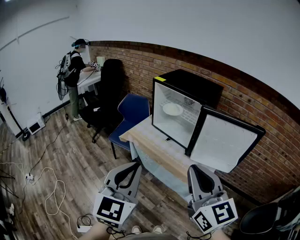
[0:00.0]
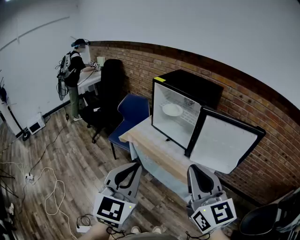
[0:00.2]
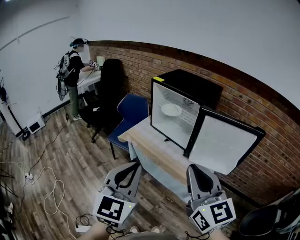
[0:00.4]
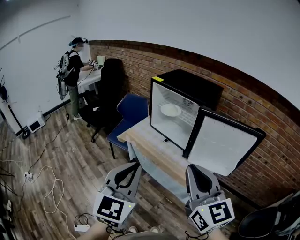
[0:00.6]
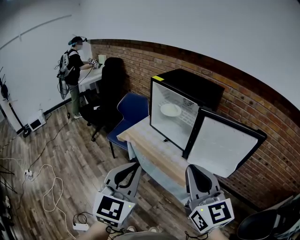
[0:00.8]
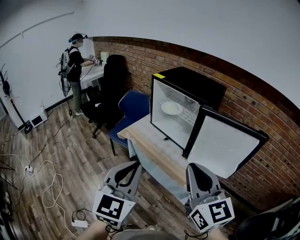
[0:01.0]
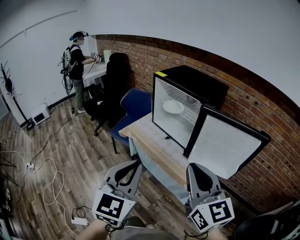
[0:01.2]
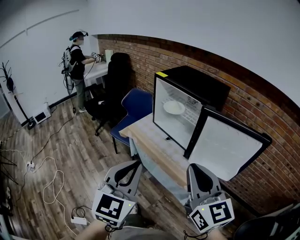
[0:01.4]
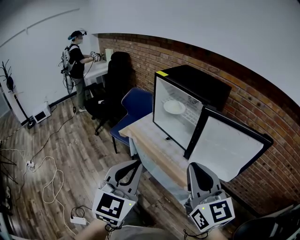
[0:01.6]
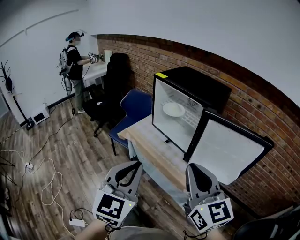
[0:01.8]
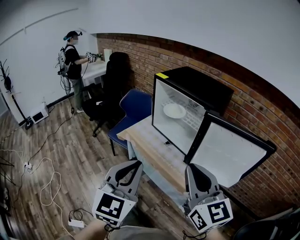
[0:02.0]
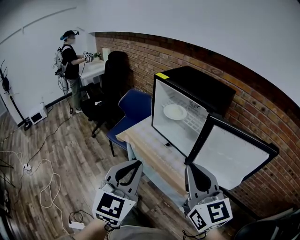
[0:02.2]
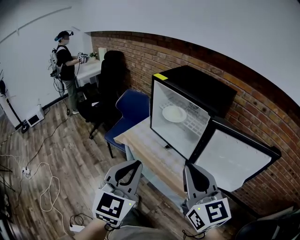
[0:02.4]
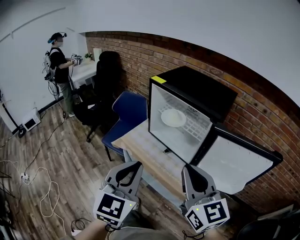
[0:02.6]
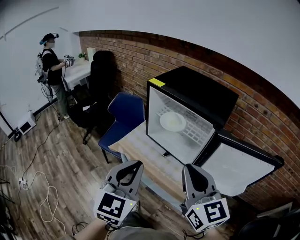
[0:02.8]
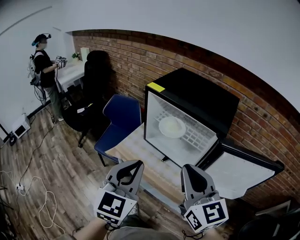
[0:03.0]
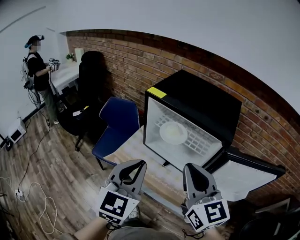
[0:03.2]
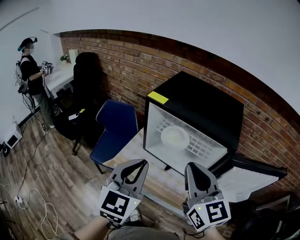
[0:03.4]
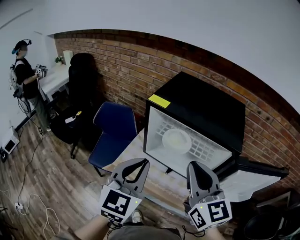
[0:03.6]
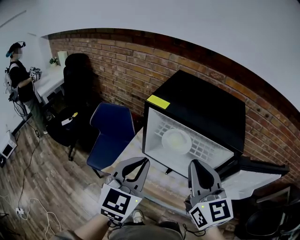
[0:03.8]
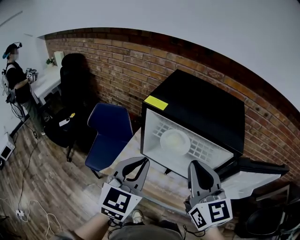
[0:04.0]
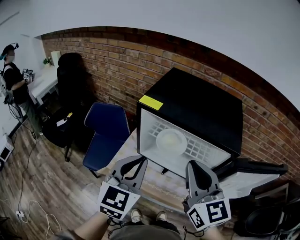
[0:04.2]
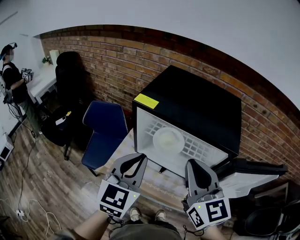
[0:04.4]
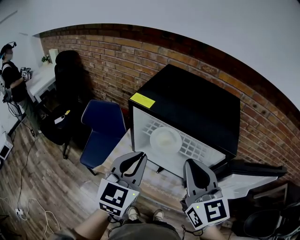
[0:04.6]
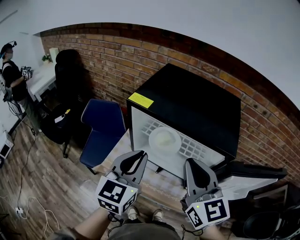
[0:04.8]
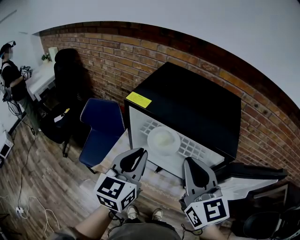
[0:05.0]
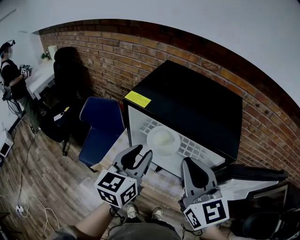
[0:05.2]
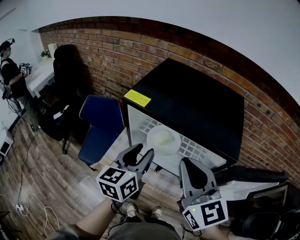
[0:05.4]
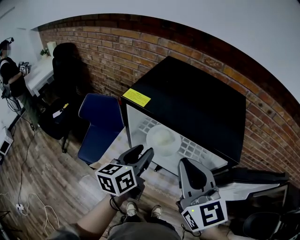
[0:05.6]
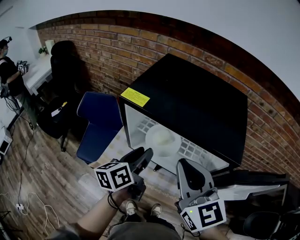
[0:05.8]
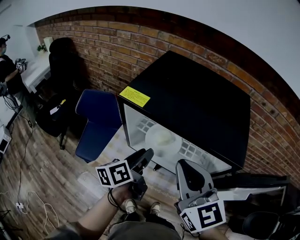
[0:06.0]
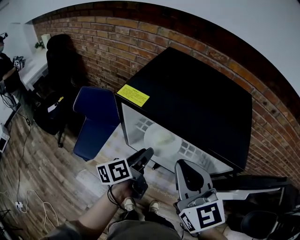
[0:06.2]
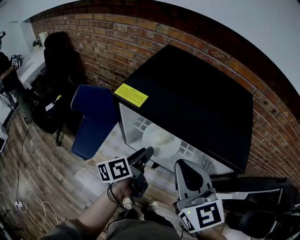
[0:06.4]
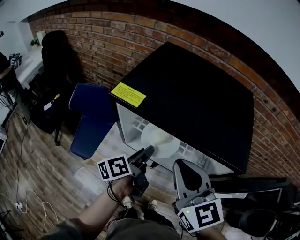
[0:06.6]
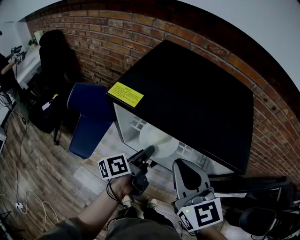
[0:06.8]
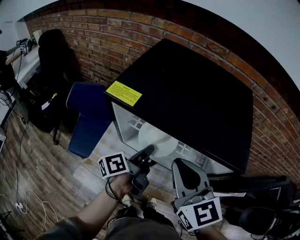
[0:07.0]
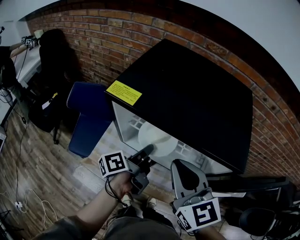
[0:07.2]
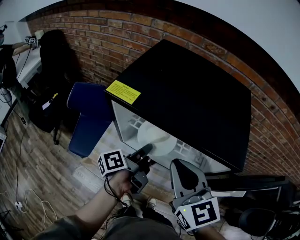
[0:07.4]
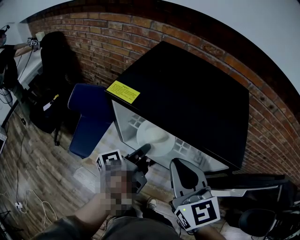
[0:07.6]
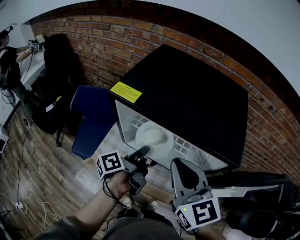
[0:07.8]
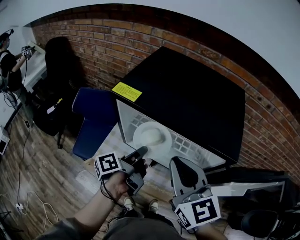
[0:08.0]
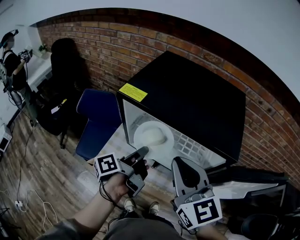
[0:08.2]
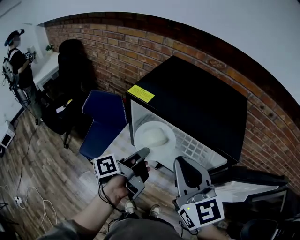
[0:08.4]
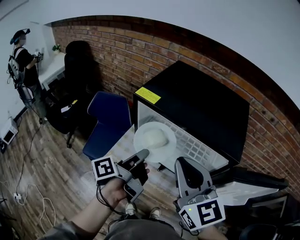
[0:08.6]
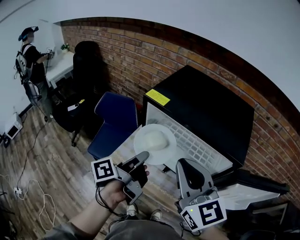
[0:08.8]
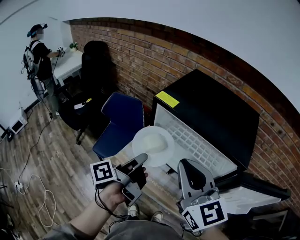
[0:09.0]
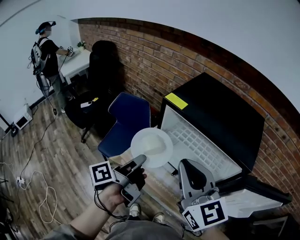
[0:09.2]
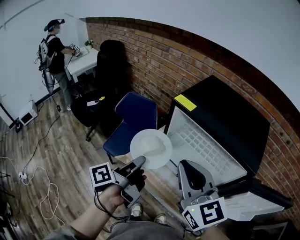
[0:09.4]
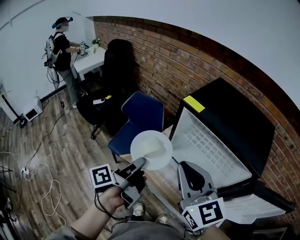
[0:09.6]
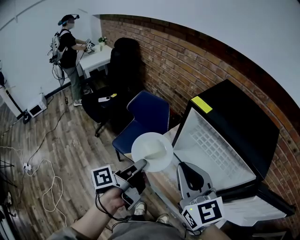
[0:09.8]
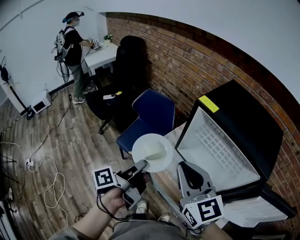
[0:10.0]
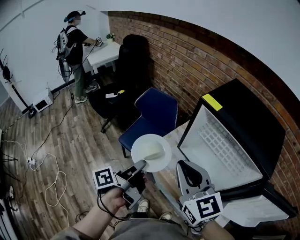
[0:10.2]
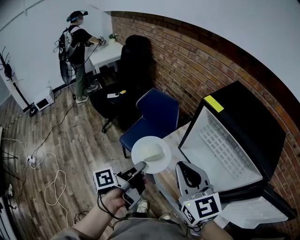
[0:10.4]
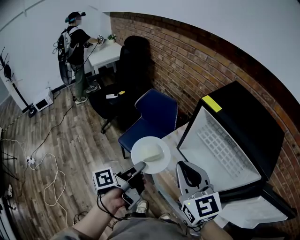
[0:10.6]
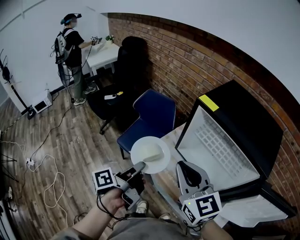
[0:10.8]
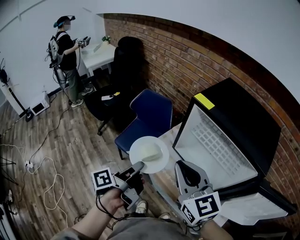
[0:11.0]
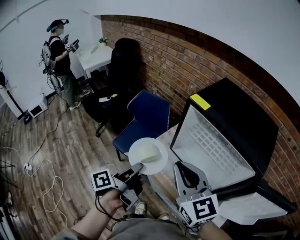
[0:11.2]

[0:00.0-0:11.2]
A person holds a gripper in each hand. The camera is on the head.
0:00.0 to 0:01.6: The left gripper heads to the right, covering roughly 5 cm, while the right gripper travels forward by some 5 cm.
0:01.6 to 0:03.2: Both grippers travel together forward, some 25 cm.
0:03.2 to 0:04.8: The grippers both shift forward by roughly 10 cm.
0:04.8 to 0:06.4: The left gripper shifts about 15 cm downward and forward, twists approximately 60 degrees counterclockwise, seen from behind, and opens up; the right gripper changes place by some 5 cm.
0:06.4 to 0:08.0: The left gripper rotates about 20 degrees, and closes.
0:08.0 to 0:09.6: The left gripper heads to the left, backward and upward, covering approximately 20 cm, and rotates some 20 degrees, while the right gripper shifts some 15 cm to the left and backward, and changes its angle by some 20 degrees.
0:09.6 to 0:11.2: The left gripper moves about 5 cm.

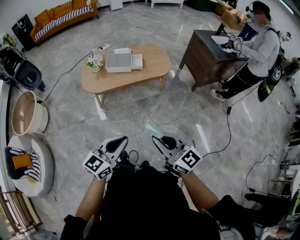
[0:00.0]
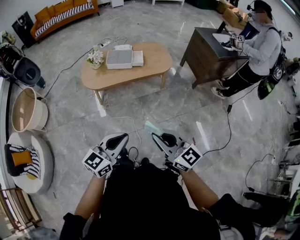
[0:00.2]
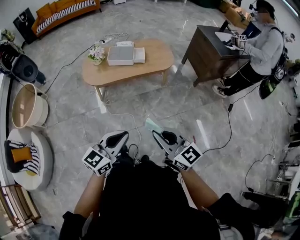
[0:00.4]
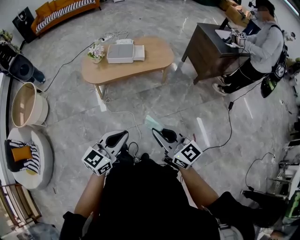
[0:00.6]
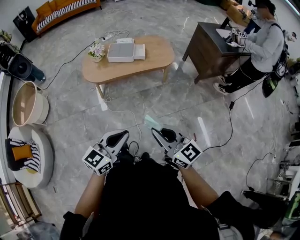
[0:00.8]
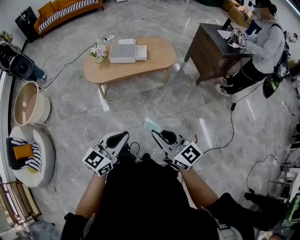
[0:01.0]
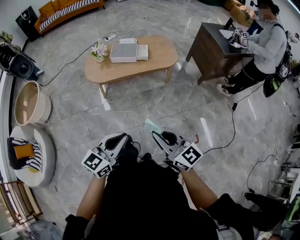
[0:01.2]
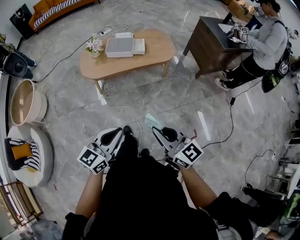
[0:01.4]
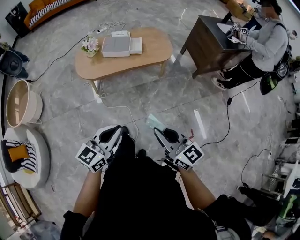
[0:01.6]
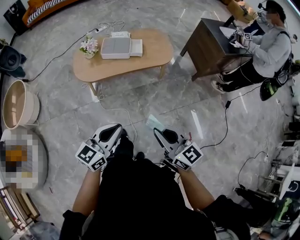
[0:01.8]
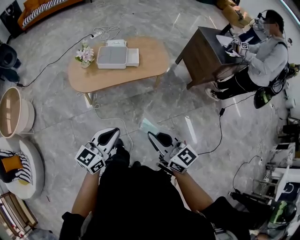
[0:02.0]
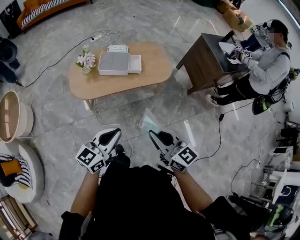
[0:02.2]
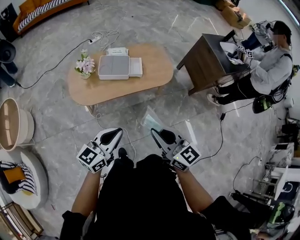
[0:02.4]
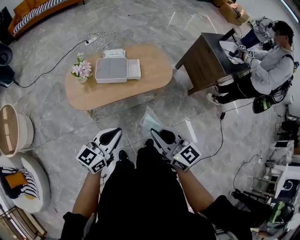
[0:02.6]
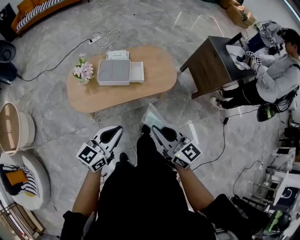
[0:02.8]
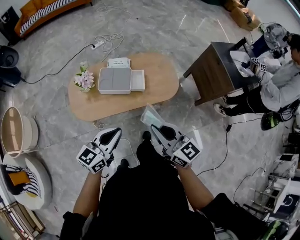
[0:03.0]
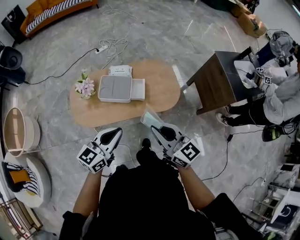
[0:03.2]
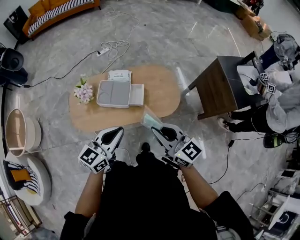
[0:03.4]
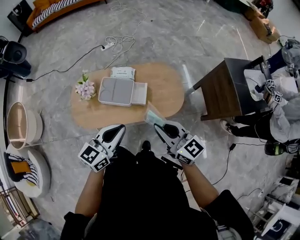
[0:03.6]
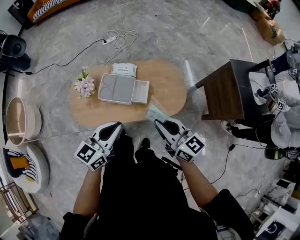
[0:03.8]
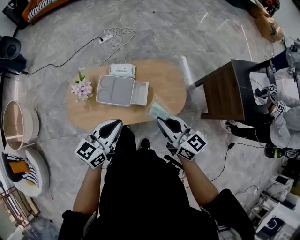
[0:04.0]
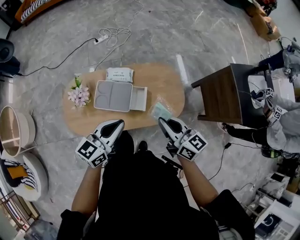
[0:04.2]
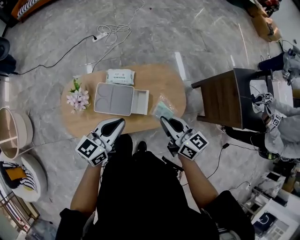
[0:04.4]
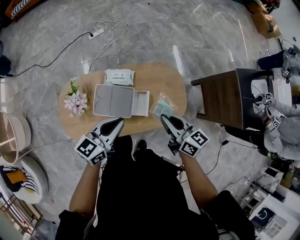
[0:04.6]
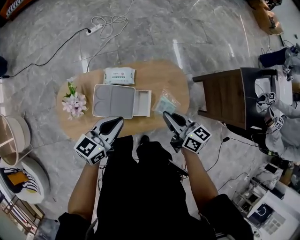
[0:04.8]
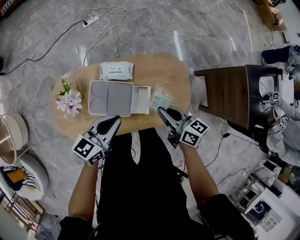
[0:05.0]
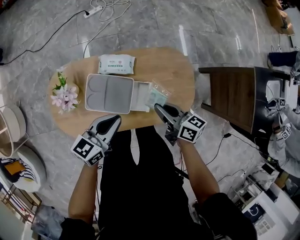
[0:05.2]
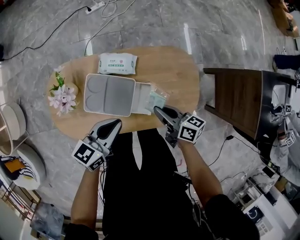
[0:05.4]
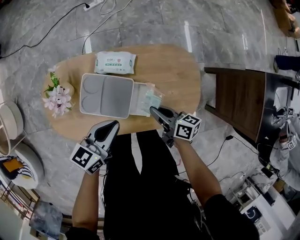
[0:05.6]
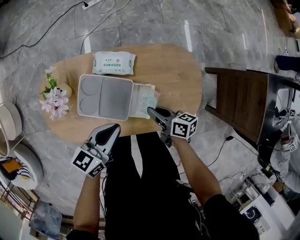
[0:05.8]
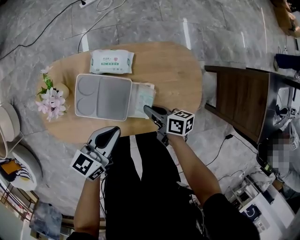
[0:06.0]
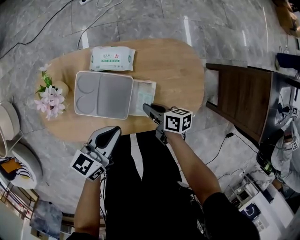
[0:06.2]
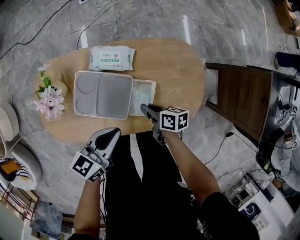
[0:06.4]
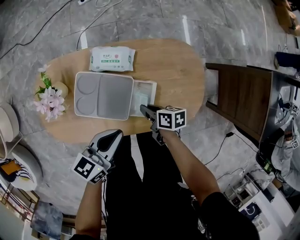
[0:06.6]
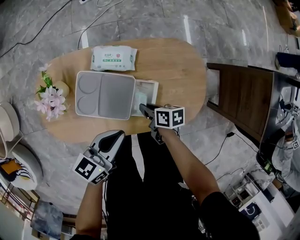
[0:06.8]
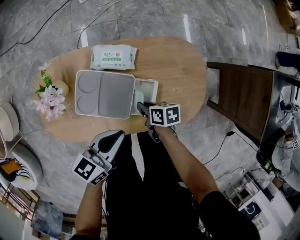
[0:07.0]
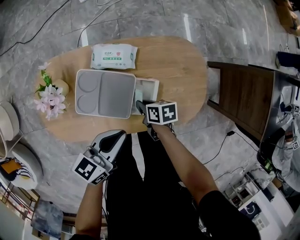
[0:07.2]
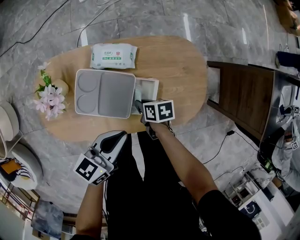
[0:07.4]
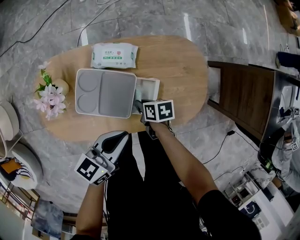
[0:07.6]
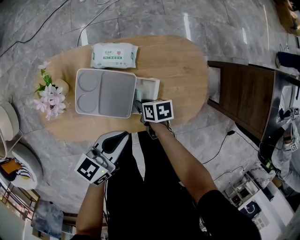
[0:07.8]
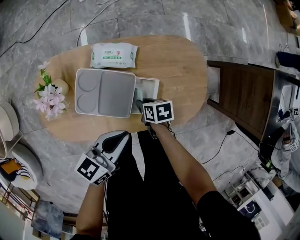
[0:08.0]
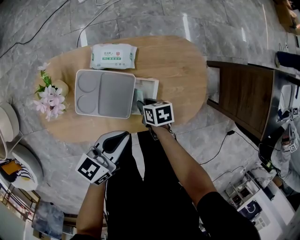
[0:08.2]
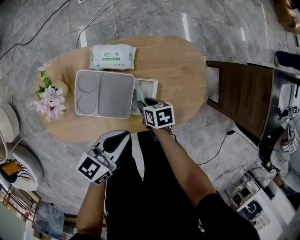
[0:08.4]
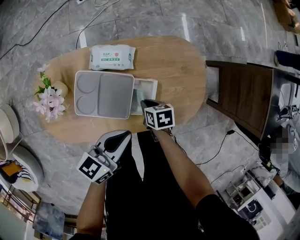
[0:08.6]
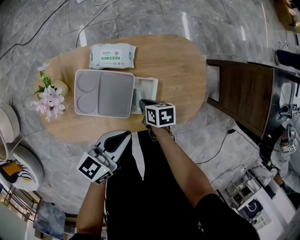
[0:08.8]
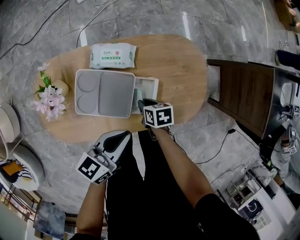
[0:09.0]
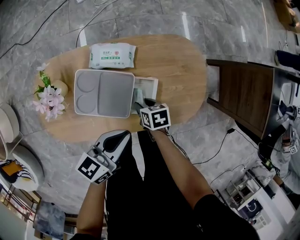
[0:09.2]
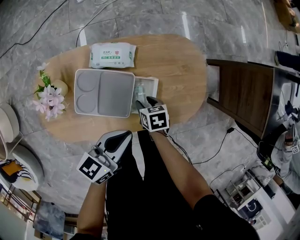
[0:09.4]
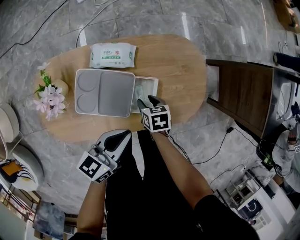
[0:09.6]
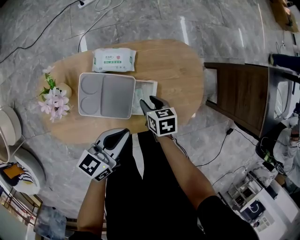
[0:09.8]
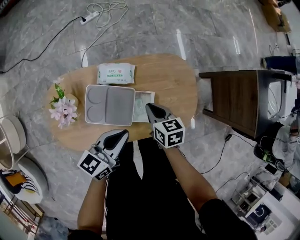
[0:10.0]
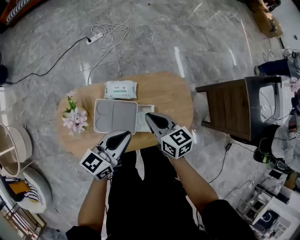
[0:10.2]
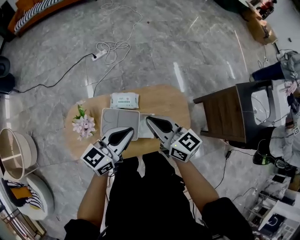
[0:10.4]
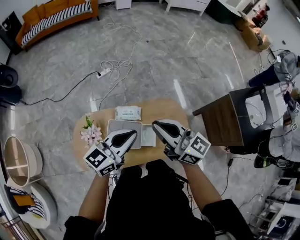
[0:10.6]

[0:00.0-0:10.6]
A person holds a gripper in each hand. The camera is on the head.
0:00.0 to 0:01.6: The left gripper goes approximately 5 cm forward. Meanwhile the right gripper moves some 5 cm.
0:01.6 to 0:03.0: Both grippers travel together forward, about 40 cm.
0:03.0 to 0:04.6: Both grippers move forward, approximately 35 cm. The right gripper rotates some 20 degrees.
0:04.6 to 0:06.0: The left gripper heads downward, covering about 20 cm. The right gripper heads downward, covering some 30 cm, and turns by about 40 degrees.
0:06.0 to 0:07.6: The right gripper travels downward by about 10 cm, and turns by roughly 30 degrees.
0:07.6 to 0:09.0: The grippers move only a little.
0:09.0 to 0:10.6: The left gripper moves upward, roughly 30 cm, and swivels about 30 degrees. Meanwhile the right gripper is displaced upward by approximately 60 cm, tips its fingers upward by about 70 degrees, and opens, then closes again.

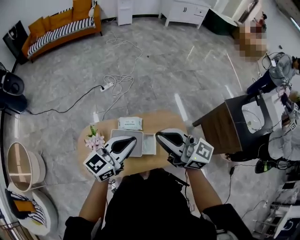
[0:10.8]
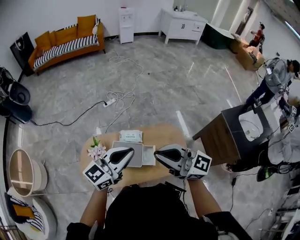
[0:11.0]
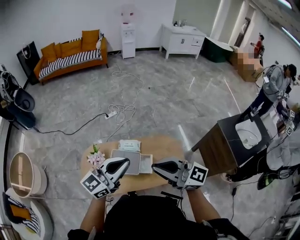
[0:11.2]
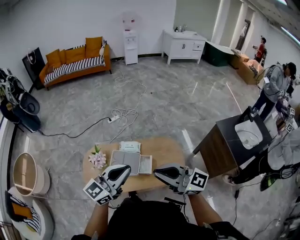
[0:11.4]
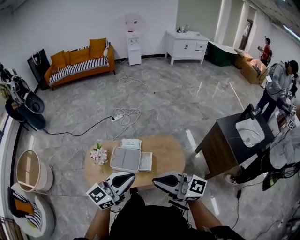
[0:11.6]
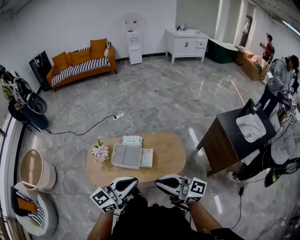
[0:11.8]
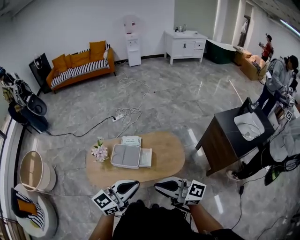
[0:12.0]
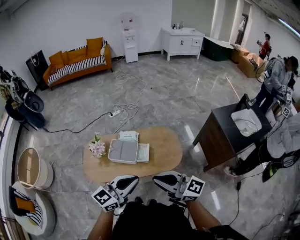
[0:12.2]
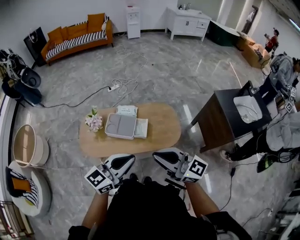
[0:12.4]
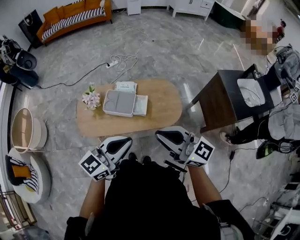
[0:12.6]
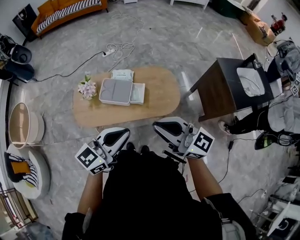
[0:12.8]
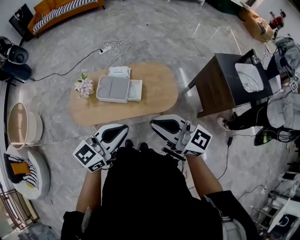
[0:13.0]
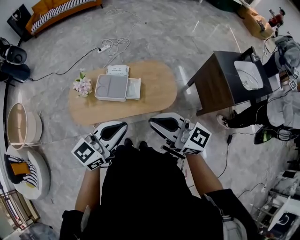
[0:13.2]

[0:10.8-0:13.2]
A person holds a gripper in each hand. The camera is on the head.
0:10.8 to 0:12.0: Both grippers move backward, about 30 cm.
0:12.0 to 0:13.2: The grippers move only a little.
